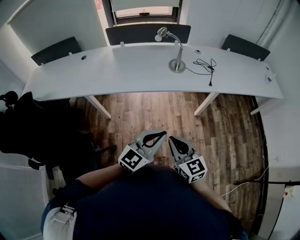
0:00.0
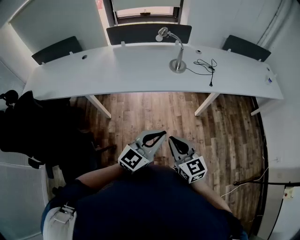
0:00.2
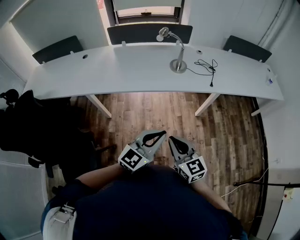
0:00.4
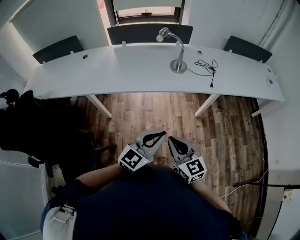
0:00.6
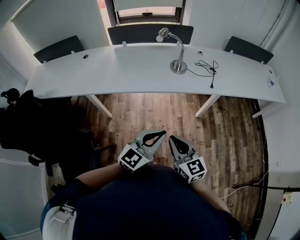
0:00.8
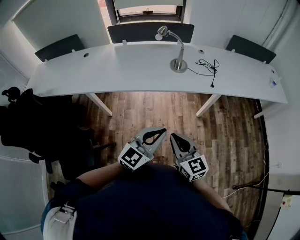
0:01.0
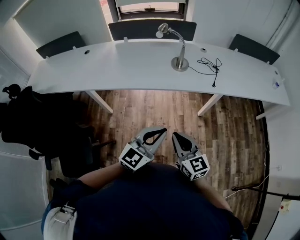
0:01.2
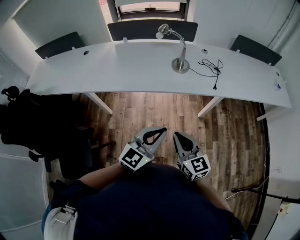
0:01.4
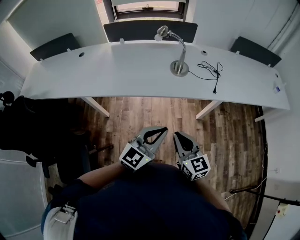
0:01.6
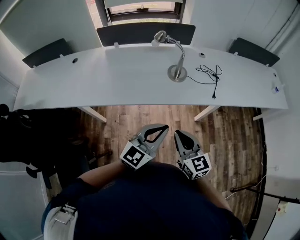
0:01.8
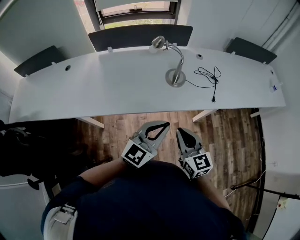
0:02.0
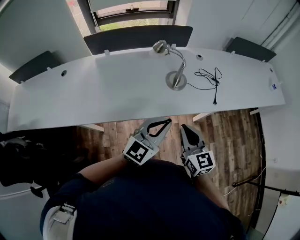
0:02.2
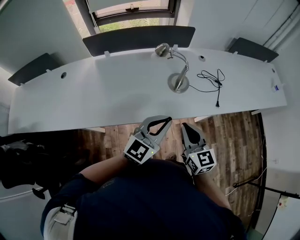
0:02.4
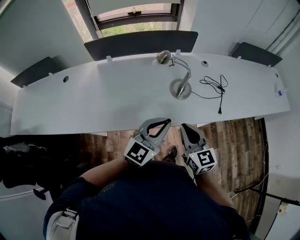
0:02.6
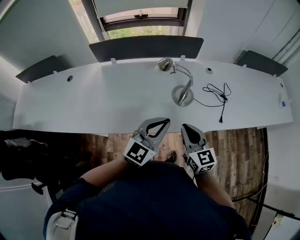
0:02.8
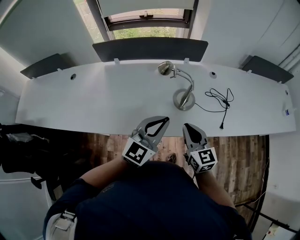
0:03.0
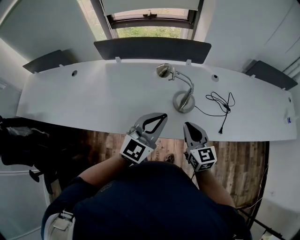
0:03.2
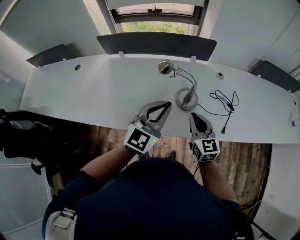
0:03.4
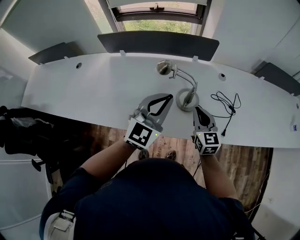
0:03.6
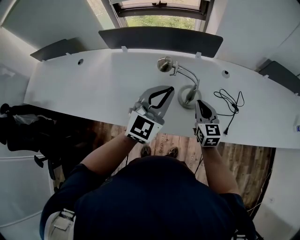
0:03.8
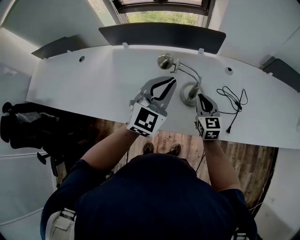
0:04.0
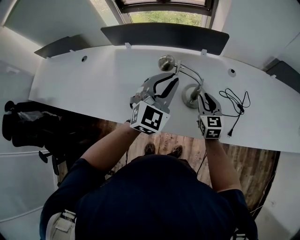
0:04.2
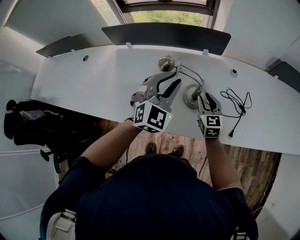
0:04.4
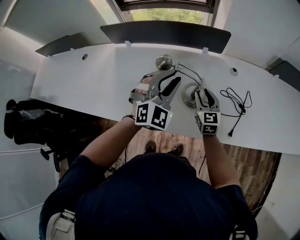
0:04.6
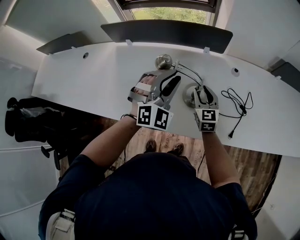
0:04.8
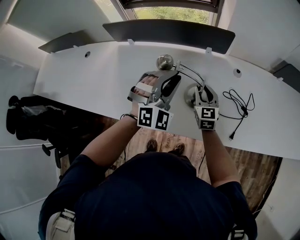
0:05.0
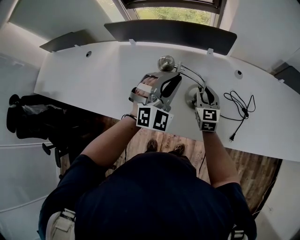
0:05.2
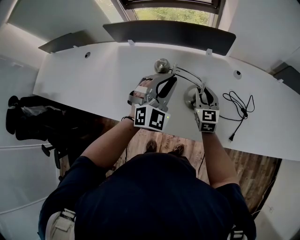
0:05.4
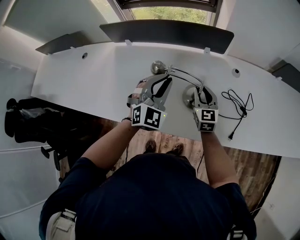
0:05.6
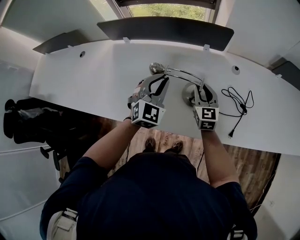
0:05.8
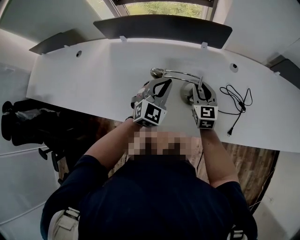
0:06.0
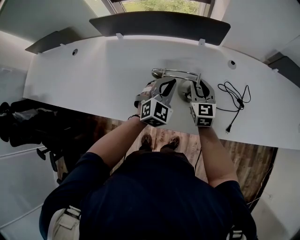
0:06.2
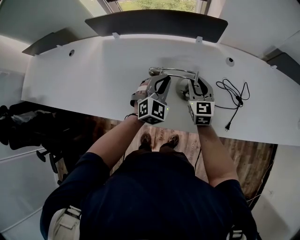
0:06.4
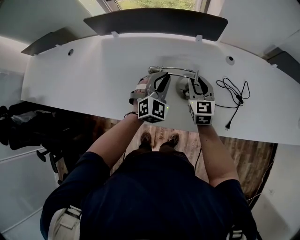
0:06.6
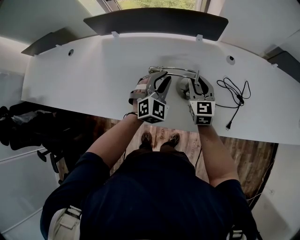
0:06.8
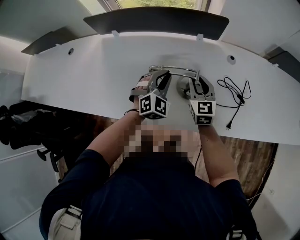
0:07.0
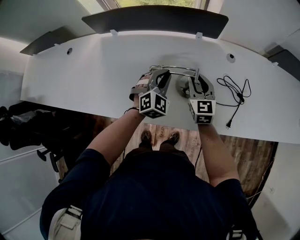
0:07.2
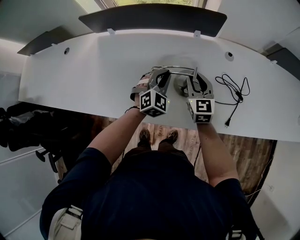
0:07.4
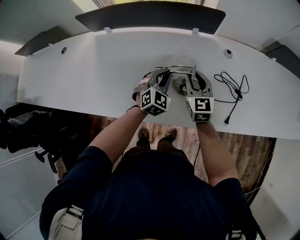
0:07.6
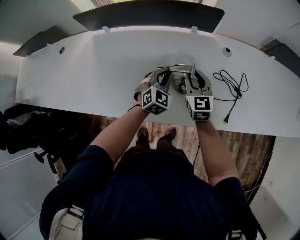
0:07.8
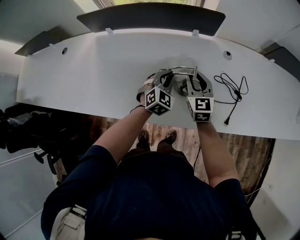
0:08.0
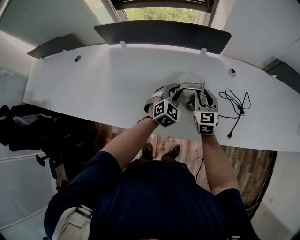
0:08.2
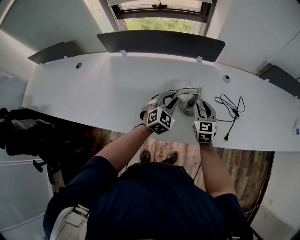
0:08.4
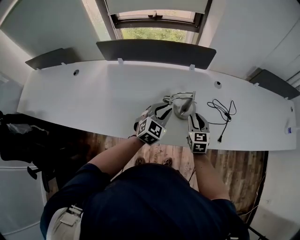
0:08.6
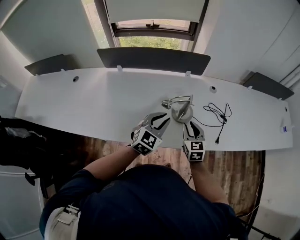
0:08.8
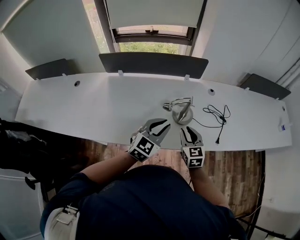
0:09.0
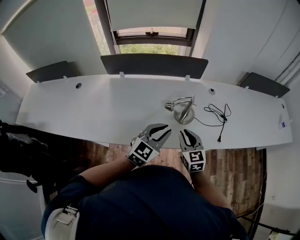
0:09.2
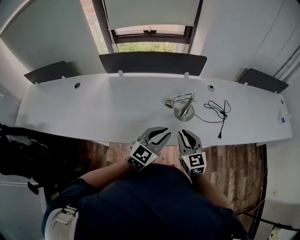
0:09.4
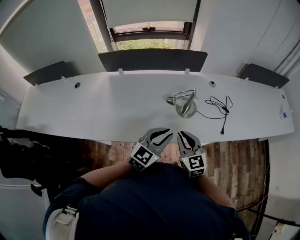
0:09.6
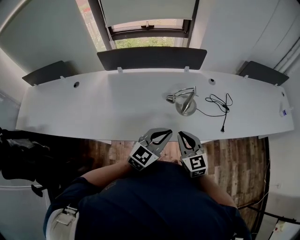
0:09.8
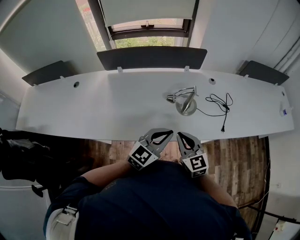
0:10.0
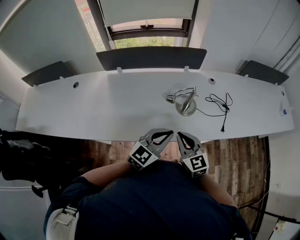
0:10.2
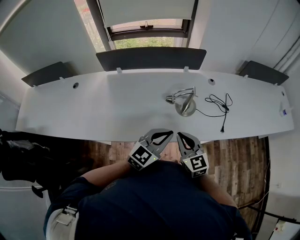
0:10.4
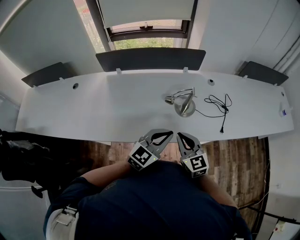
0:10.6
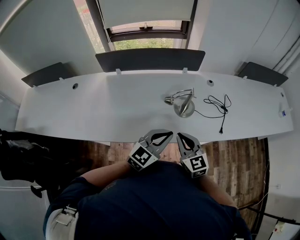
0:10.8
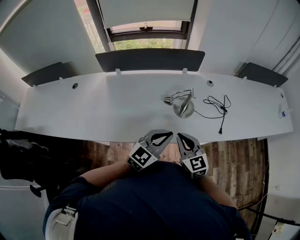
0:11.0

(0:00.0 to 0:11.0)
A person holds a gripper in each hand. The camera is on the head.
0:00.0 - 0:01.6: Both grippers move forward, roughly 10 cm.
0:01.6 - 0:03.2: Both grippers travel together forward, about 35 cm.
0:03.2 - 0:04.8: The right gripper shifts about 20 cm forward and downward, and opens its fingers. Meanwhile the left gripper moves forward, roughly 15 cm, and rotates around the line of its fingers by about 50 degrees, clockwise from behind.
0:04.8 - 0:06.2: The left gripper shifts roughly 10 cm downward, and swivels some 20 degrees.
0:06.2 - 0:07.8: The left gripper goes approximately 10 cm downward.
0:07.8 - 0:09.4: The two grippers go approximately 30 cm backward and upward. The left gripper rotates about 30 degrees.
0:09.4 - 0:11.0: There are only small adjustments of the grippers.

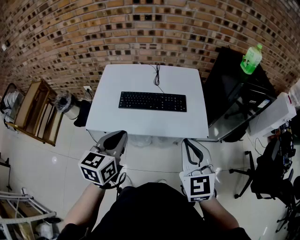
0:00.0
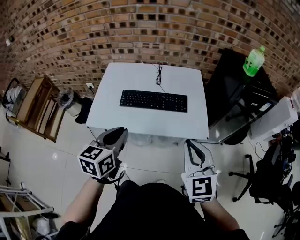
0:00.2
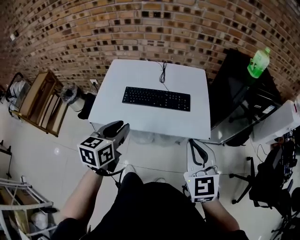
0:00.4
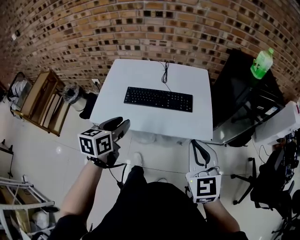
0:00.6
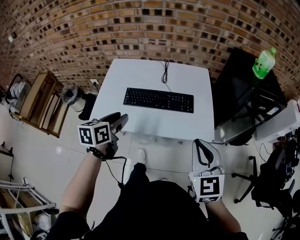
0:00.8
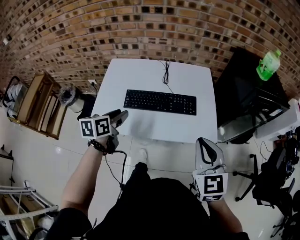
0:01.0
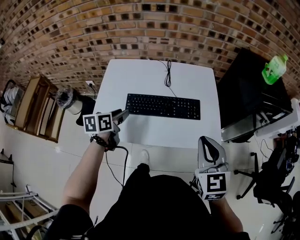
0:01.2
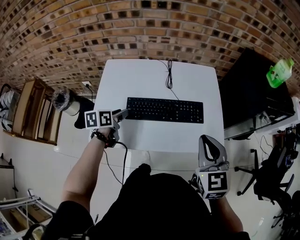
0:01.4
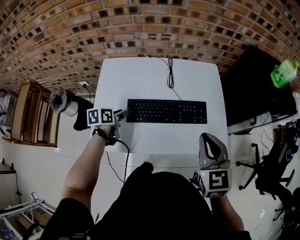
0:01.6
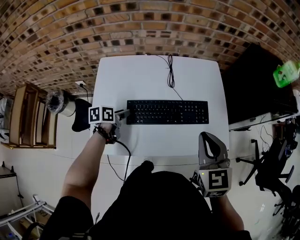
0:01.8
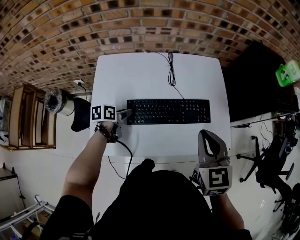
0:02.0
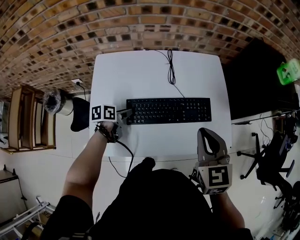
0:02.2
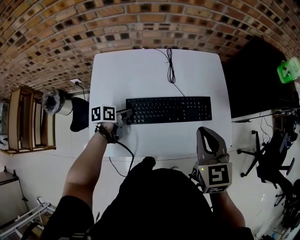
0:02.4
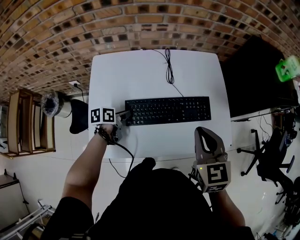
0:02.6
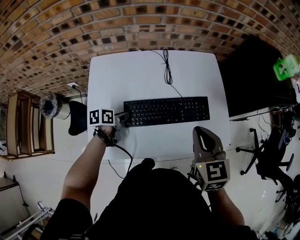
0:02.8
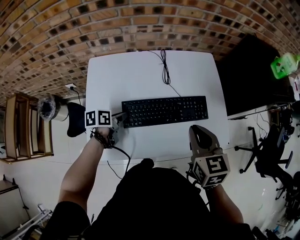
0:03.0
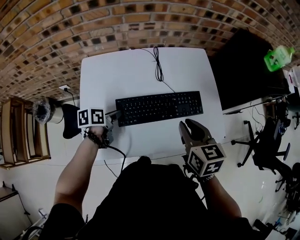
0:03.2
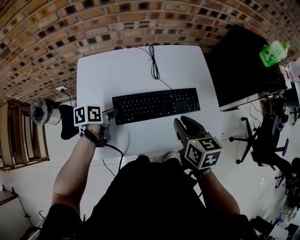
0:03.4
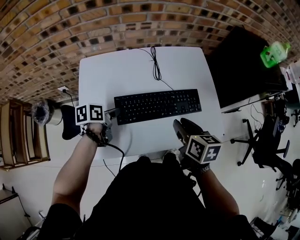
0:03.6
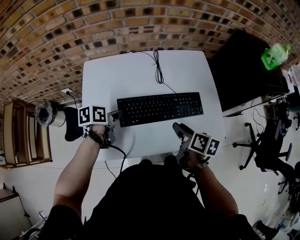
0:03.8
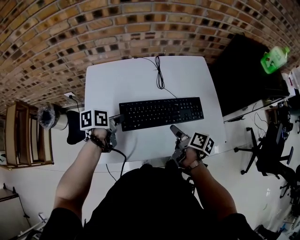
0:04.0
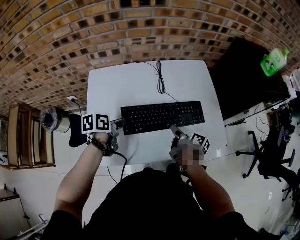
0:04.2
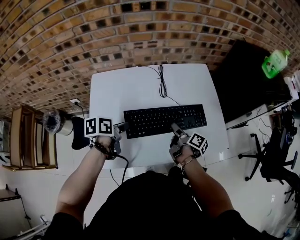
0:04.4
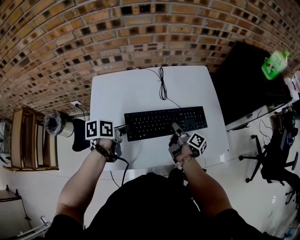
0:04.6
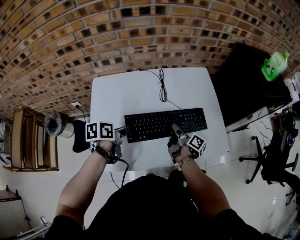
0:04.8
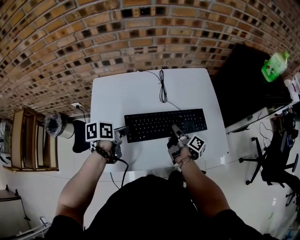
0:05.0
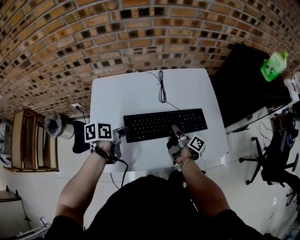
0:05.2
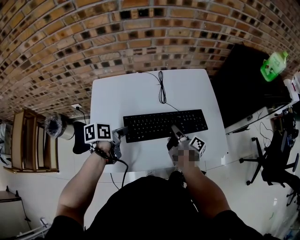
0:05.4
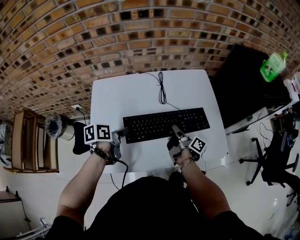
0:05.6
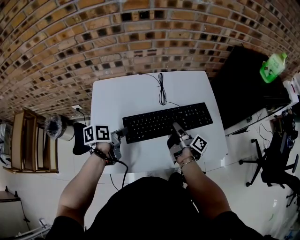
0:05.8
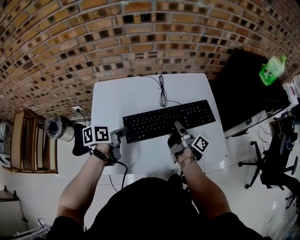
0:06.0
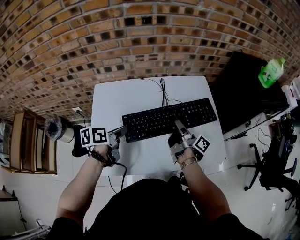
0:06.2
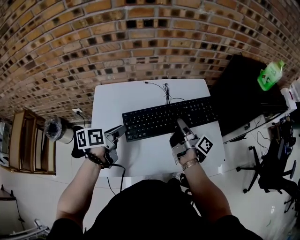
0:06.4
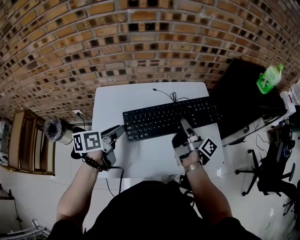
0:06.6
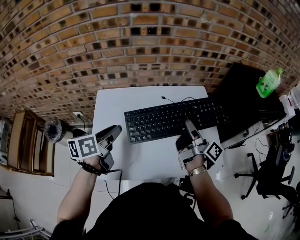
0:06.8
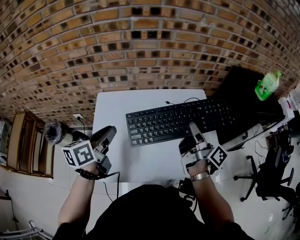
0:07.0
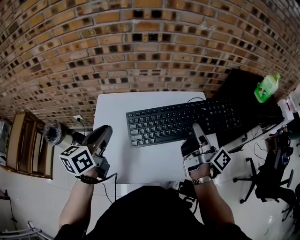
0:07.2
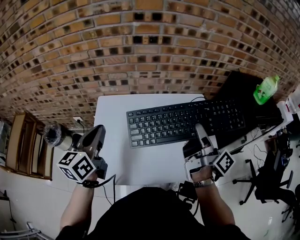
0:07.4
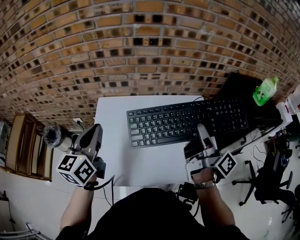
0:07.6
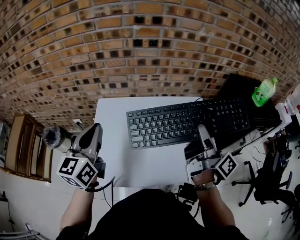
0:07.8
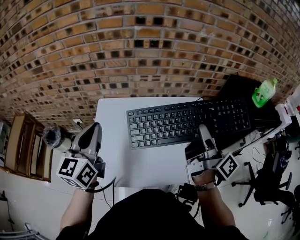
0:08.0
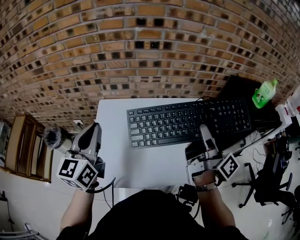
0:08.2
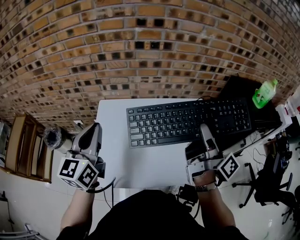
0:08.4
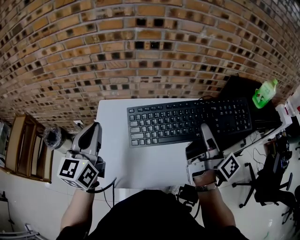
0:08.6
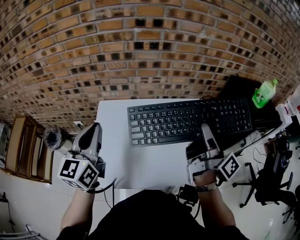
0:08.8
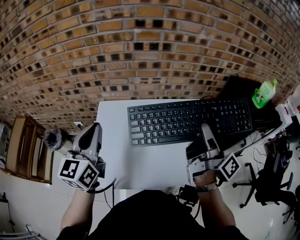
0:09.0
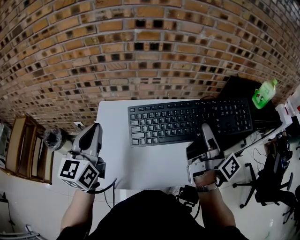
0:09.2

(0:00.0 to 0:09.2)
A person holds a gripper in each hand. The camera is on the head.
0:00.0 - 0:01.6: The left gripper shifts some 40 cm forward, downward and to the left, rotates roughly 40 degrees, and opens up, while the right gripper travels forward by about 20 cm.
0:01.6 - 0:03.0: The right gripper is displaced downward and to the left by about 10 cm.
0:03.0 - 0:04.6: The left gripper moves upward, some 10 cm, while the right gripper travels downward by some 20 cm, rotates around the line of its fingers by about 80 degrees, clockwise from behind, and opens.
0:04.6 - 0:06.2: The right gripper heads upward, covering about 10 cm, and closes up.
0:06.2 - 0:07.6: The two grippers go some 20 cm upward. The right gripper rotates approximately 20 degrees; the left gripper turns by some 50 degrees, and closes its fingers.
0:07.6 - 0:09.2: The grippers move only a little.

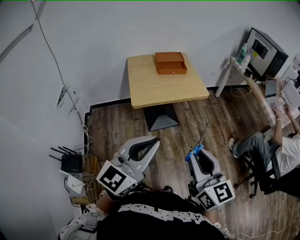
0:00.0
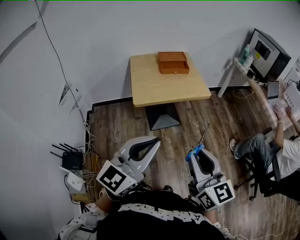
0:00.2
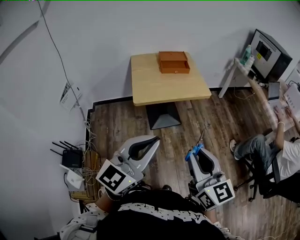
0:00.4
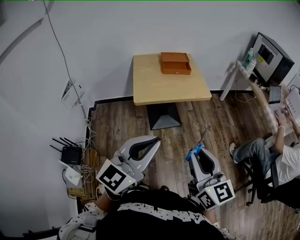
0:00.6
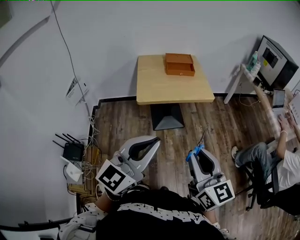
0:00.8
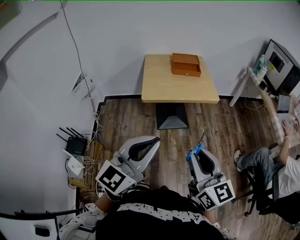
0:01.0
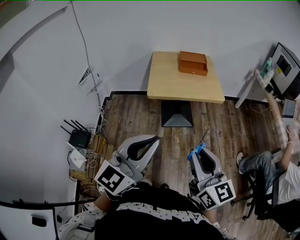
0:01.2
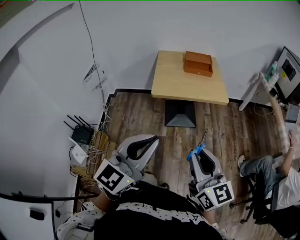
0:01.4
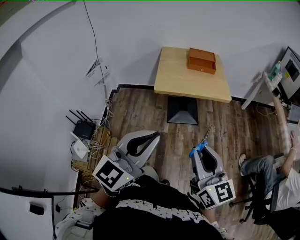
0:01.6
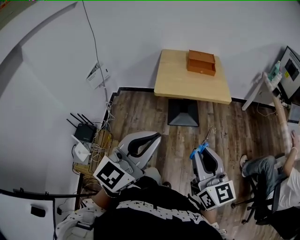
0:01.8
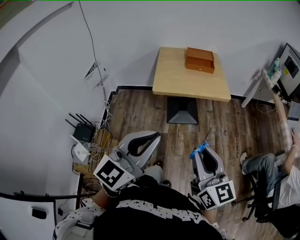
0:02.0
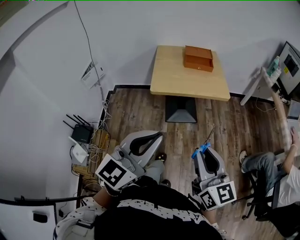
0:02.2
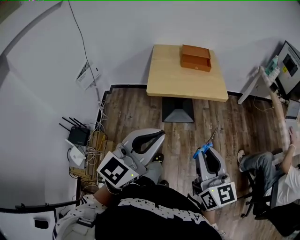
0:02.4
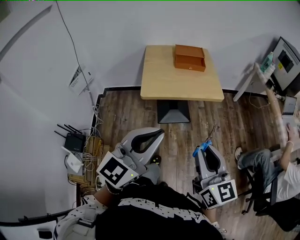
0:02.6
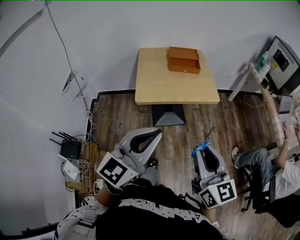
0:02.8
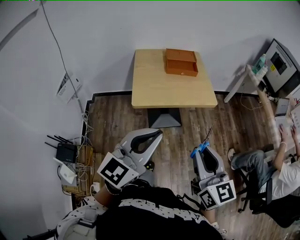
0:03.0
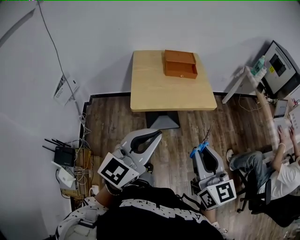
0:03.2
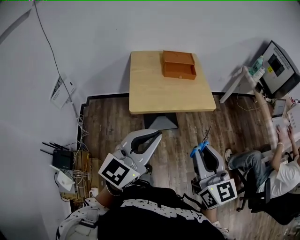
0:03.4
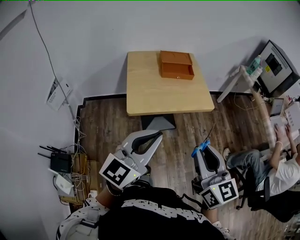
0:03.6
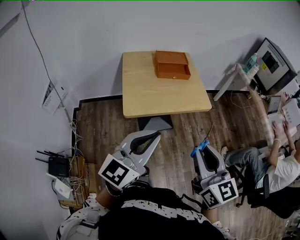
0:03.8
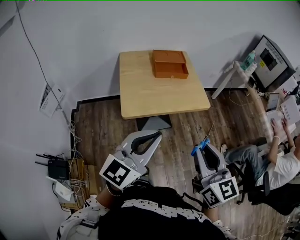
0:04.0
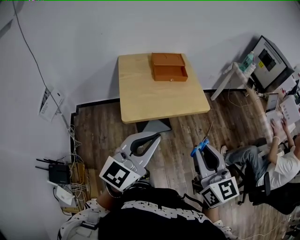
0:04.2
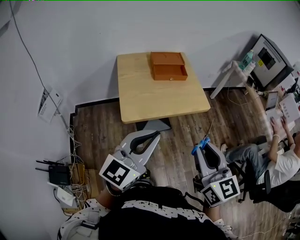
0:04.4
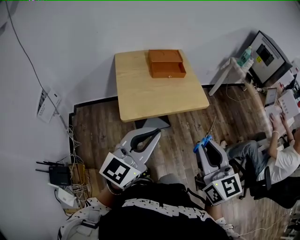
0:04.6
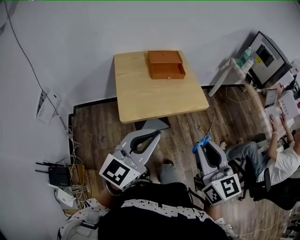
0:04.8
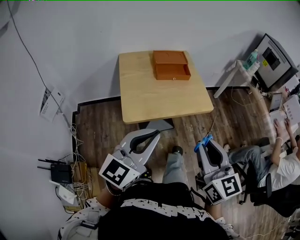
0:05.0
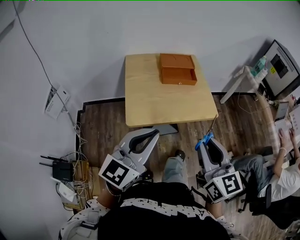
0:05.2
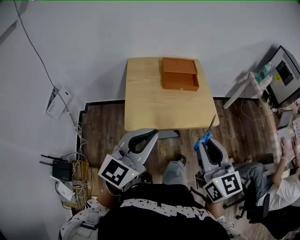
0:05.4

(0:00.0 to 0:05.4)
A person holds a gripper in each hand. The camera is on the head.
0:00.0 - 0:01.4: The left gripper is displaced backward by about 5 cm.
0:01.4 - 0:02.8: The grippers both shift forward by roughly 10 cm.
0:02.8 - 0:04.0: Both grippers travel together forward, approximately 10 cm.
0:04.0 - 0:05.4: Both grippers move forward, roughly 10 cm.
